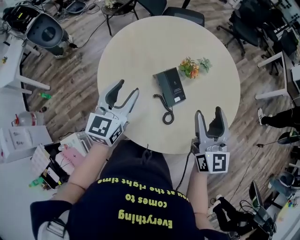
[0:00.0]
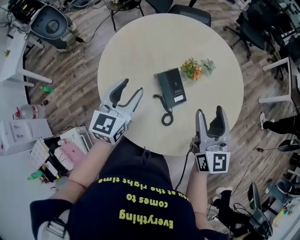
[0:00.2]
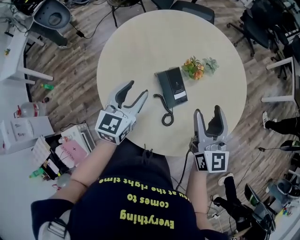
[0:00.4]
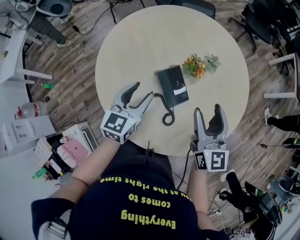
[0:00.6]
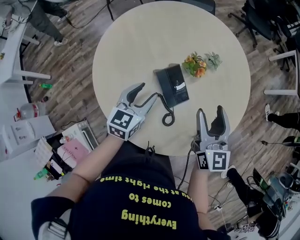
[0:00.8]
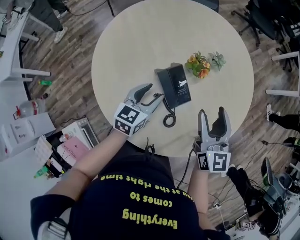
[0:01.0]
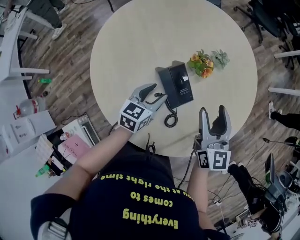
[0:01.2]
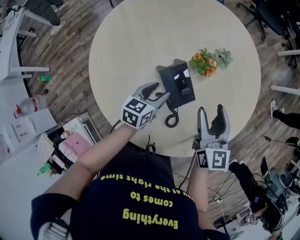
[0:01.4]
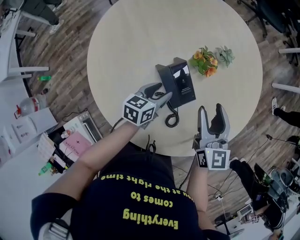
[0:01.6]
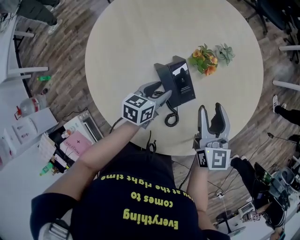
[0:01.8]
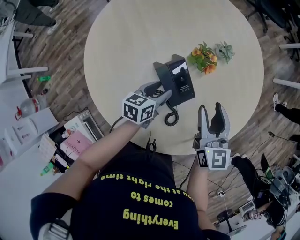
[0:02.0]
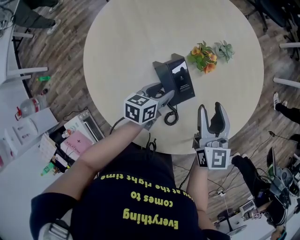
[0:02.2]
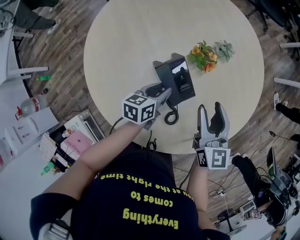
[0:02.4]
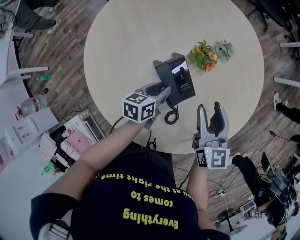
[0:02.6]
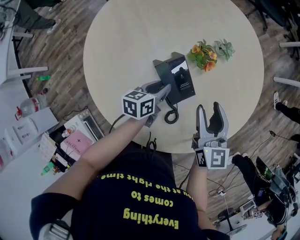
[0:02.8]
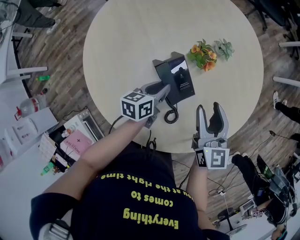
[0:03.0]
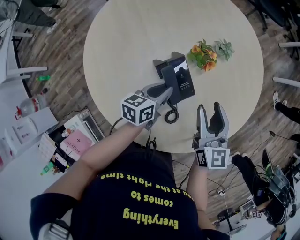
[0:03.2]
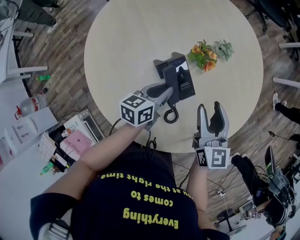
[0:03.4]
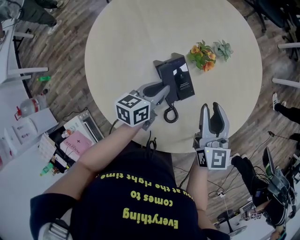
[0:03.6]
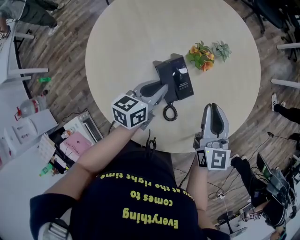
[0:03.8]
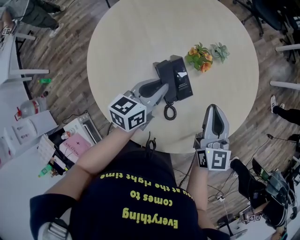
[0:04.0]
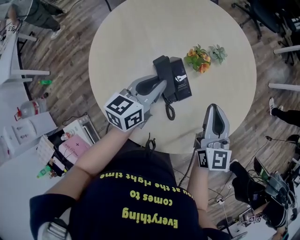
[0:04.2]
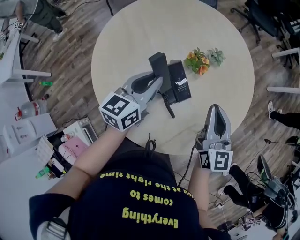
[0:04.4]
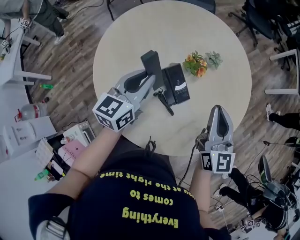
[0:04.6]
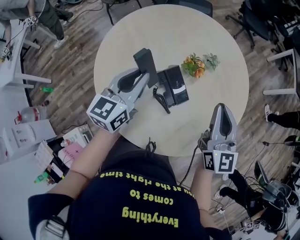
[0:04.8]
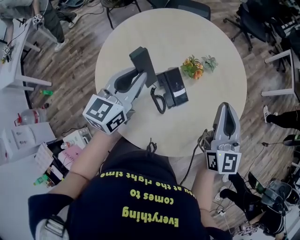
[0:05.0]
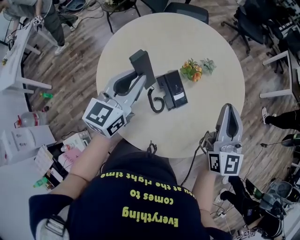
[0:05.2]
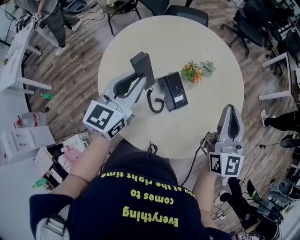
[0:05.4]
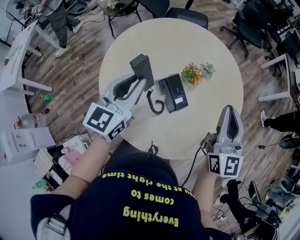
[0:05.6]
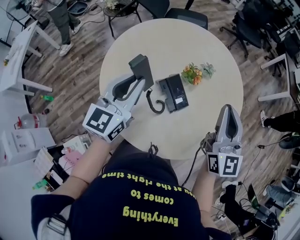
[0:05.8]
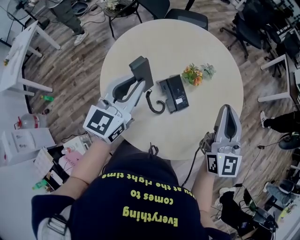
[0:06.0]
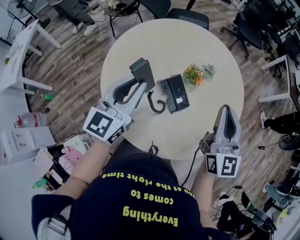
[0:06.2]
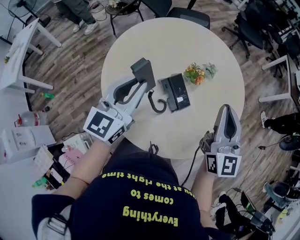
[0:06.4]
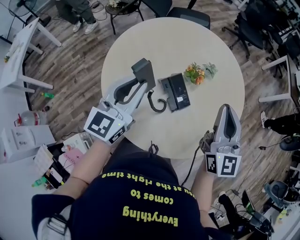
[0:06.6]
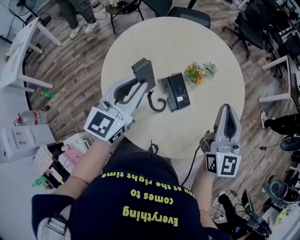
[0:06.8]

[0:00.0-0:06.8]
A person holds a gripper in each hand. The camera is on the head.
0:00.0 to 0:01.4: The right gripper goes about 15 cm downward and forward. The left gripper goes some 25 cm downward, to the right and forward, and rotates about 30 degrees.
0:01.4 to 0:02.8: The left gripper closes up.
0:02.8 to 0:04.0: The left gripper heads upward, covering approximately 10 cm. The right gripper closes.
0:04.0 to 0:05.4: The left gripper goes roughly 20 cm upward and to the left, and turns by about 30 degrees; the right gripper shifts about 15 cm upward.
0:05.4 to 0:06.8: There are only small adjustments of the grippers.

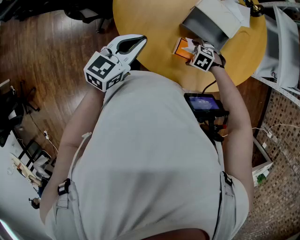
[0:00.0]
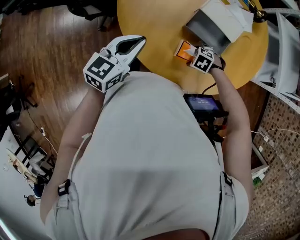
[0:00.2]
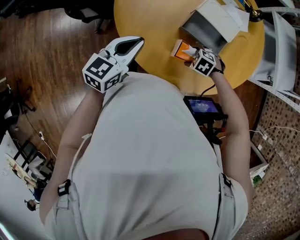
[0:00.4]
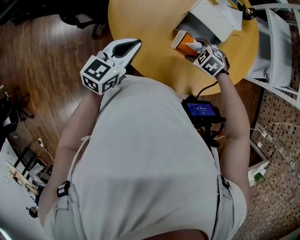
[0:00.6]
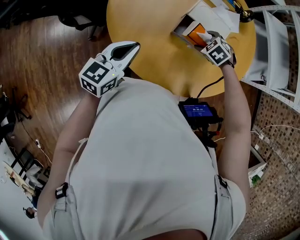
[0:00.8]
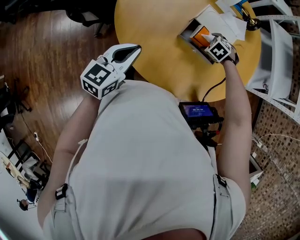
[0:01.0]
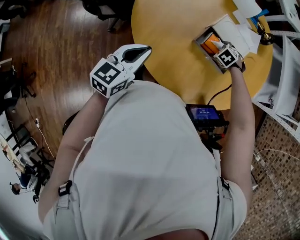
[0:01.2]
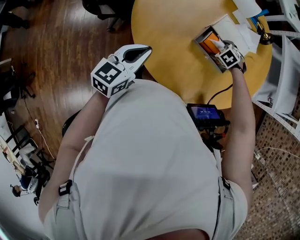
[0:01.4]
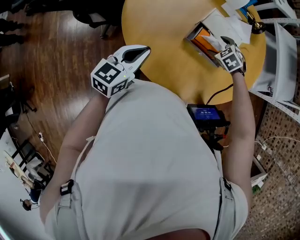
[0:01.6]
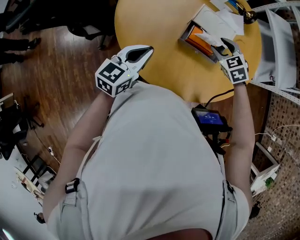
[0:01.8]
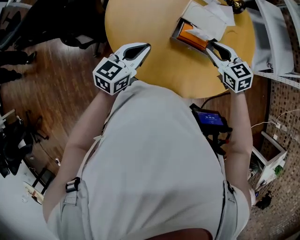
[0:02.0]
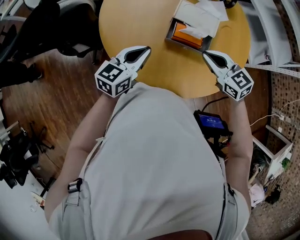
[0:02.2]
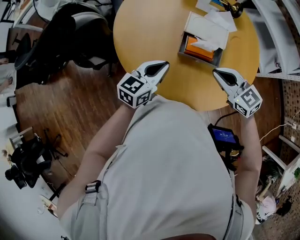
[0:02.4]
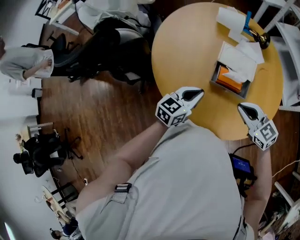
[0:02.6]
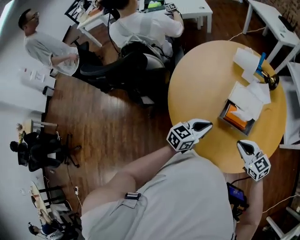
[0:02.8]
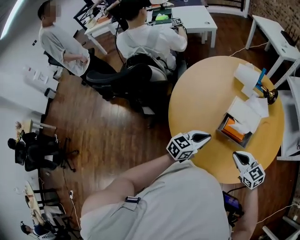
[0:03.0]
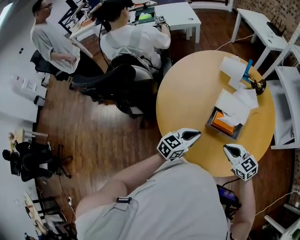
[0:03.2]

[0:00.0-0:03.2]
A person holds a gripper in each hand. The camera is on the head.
0:00.0 to 0:01.6: The right gripper swings up and down, roughly 10 cm each way, with 2 reversals, and changes its angle by about 30 degrees.
0:01.6 to 0:03.2: The right gripper goes some 20 cm upward and backward, angles its fingers upward, by approximately 40 degrees, and closes up. The left gripper moves to the right, about 10 cm.

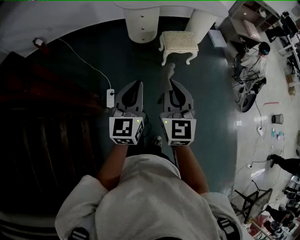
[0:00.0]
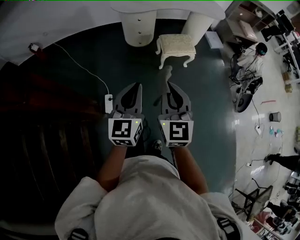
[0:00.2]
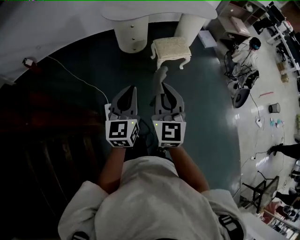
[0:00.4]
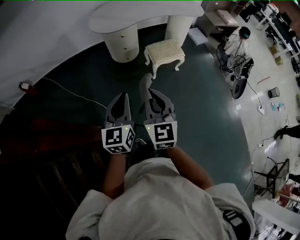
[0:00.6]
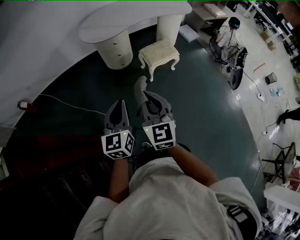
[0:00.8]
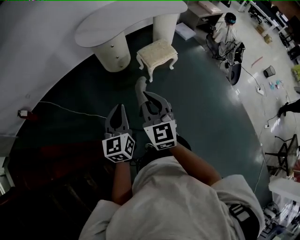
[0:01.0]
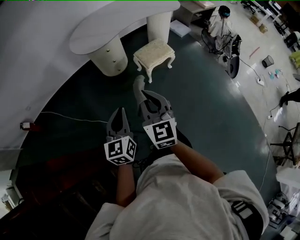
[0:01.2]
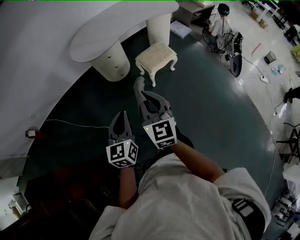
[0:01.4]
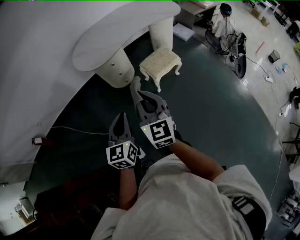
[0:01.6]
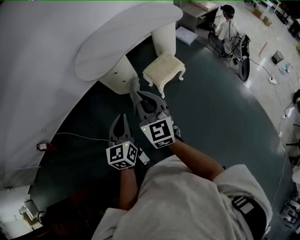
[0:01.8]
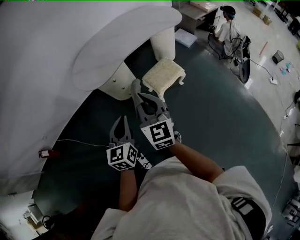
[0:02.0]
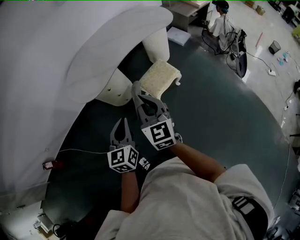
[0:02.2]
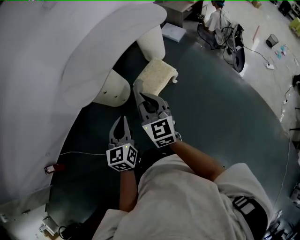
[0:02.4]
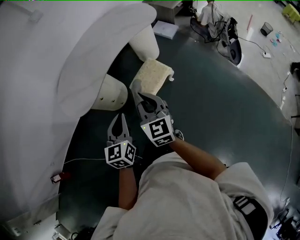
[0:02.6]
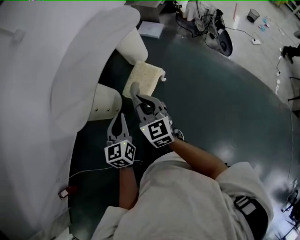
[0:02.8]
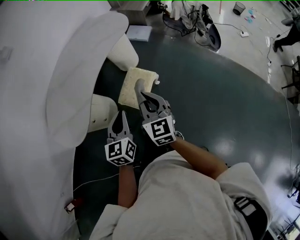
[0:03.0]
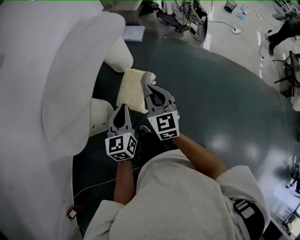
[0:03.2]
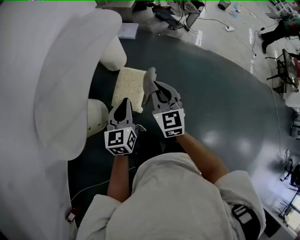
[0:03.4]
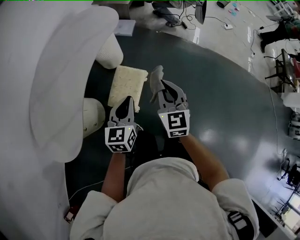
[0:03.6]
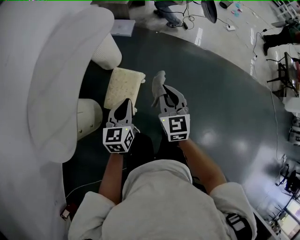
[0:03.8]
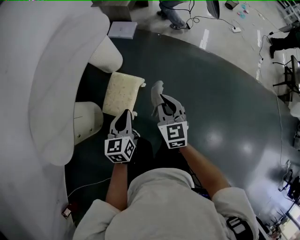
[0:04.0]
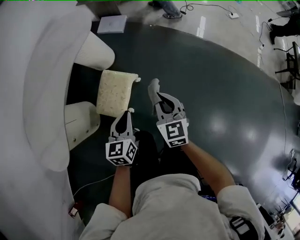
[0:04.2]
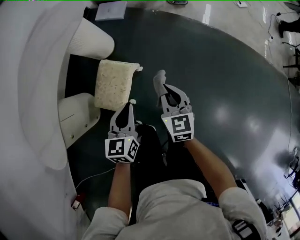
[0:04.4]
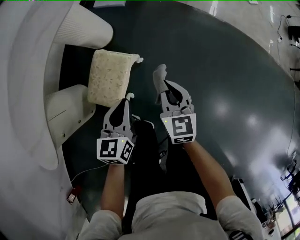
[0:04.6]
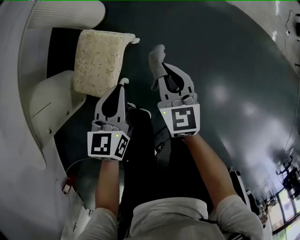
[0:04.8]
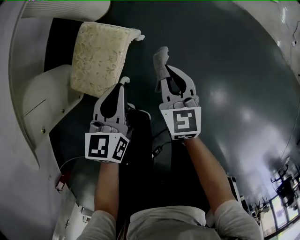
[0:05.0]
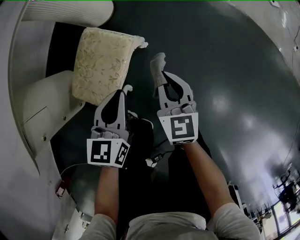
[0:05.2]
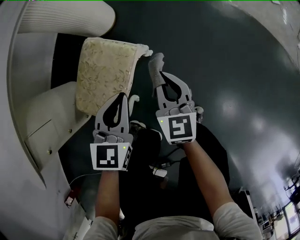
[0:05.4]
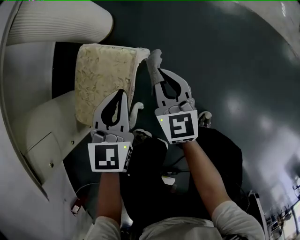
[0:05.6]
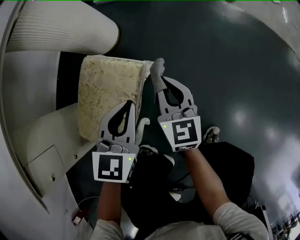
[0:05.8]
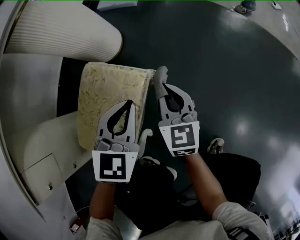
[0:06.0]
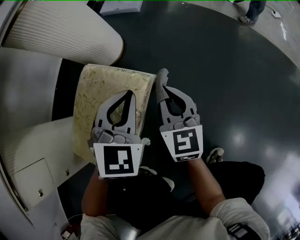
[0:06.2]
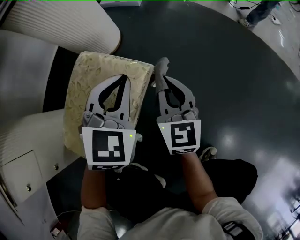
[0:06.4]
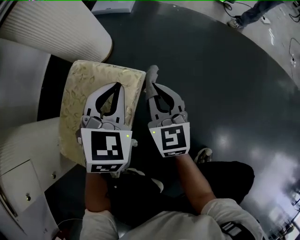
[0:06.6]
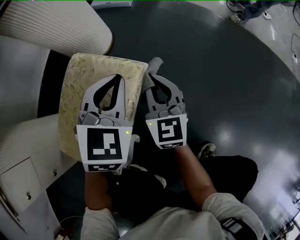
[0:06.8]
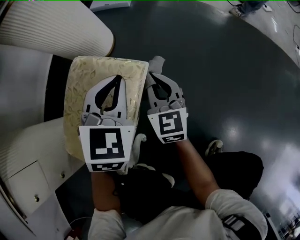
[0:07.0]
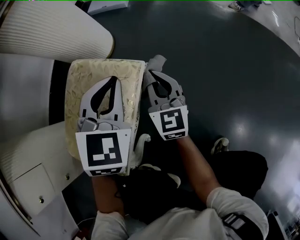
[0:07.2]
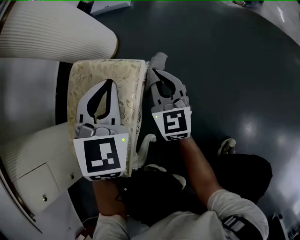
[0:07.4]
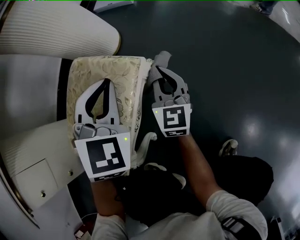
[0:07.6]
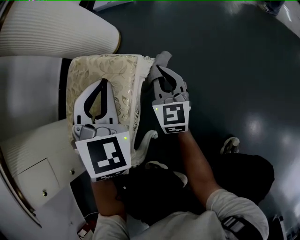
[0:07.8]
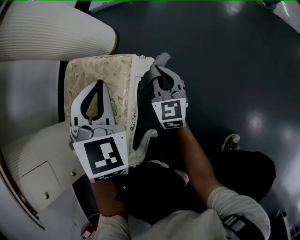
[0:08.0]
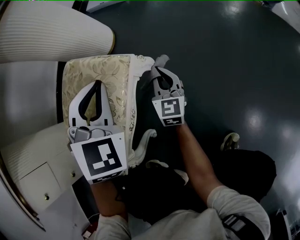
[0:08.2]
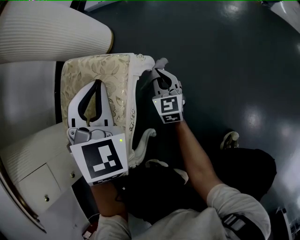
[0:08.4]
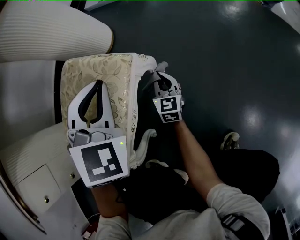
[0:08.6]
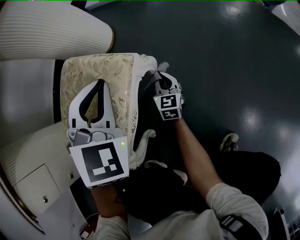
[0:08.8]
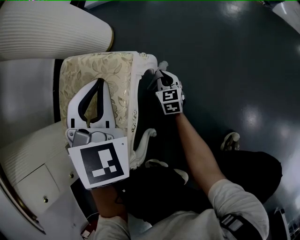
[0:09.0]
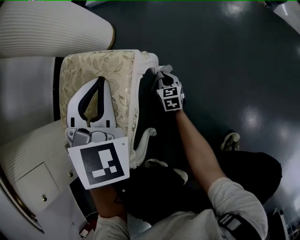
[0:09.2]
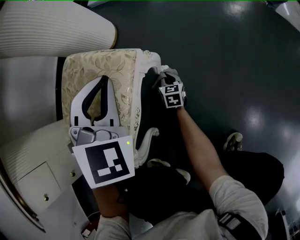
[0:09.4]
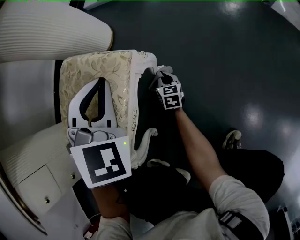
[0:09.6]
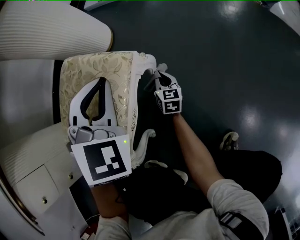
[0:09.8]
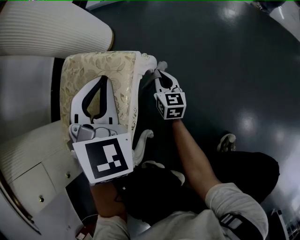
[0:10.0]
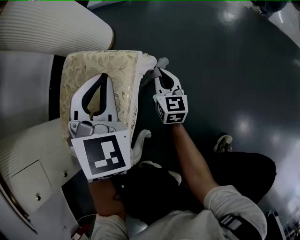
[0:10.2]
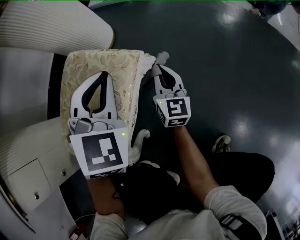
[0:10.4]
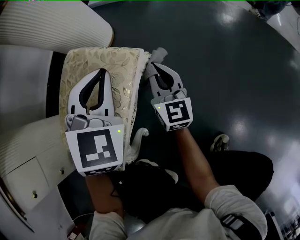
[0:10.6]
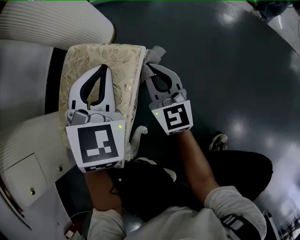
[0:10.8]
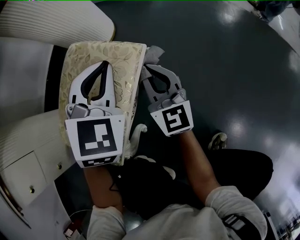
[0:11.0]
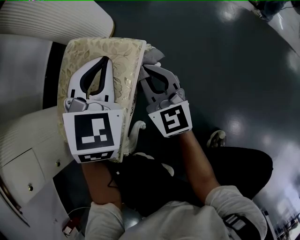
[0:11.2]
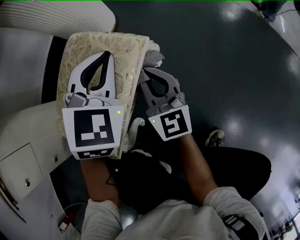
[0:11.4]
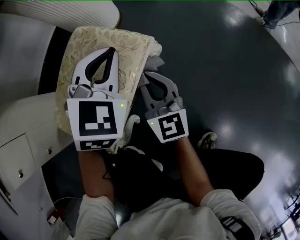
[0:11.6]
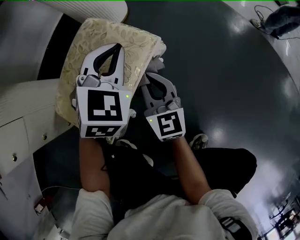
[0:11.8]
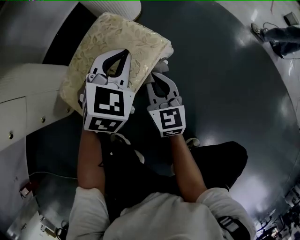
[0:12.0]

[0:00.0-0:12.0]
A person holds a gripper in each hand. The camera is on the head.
0:00.0 to 0:01.6: Both grippers move forward and to the left, some 25 cm.
0:01.6 to 0:03.0: The left gripper moves some 40 cm, and swivels approximately 30 degrees, while the right gripper ends up approximately 40 cm from where it was, and turns by approximately 30 degrees.
0:03.0 to 0:04.4: The grippers both shift downward, to the right and forward by some 30 cm.
0:04.4 to 0:06.0: Both grippers move downward, roughly 40 cm. The left gripper swivels approximately 30 degrees.
0:06.0 to 0:07.6: The left gripper shifts by approximately 5 cm, and swivels approximately 20 degrees; the right gripper shifts roughly 10 cm downward.
0:07.6 to 0:09.0: The right gripper moves downward, roughly 20 cm.
0:09.0 to 0:10.4: The right gripper travels upward by some 15 cm.
0:10.4 to 0:12.0: The right gripper is displaced upward, to the left and backward by roughly 15 cm, and swivels some 30 degrees.

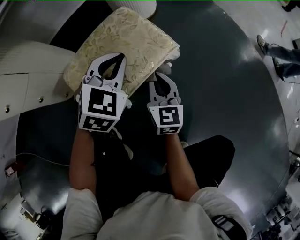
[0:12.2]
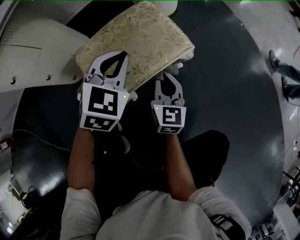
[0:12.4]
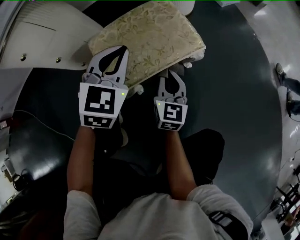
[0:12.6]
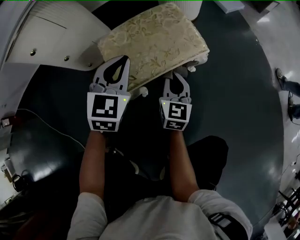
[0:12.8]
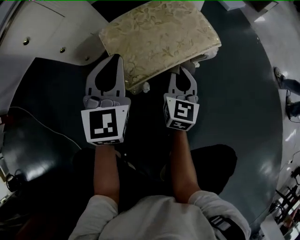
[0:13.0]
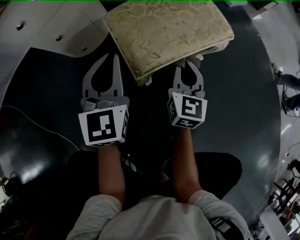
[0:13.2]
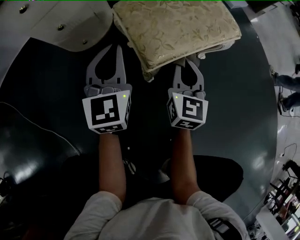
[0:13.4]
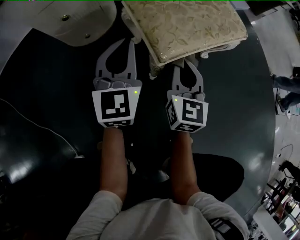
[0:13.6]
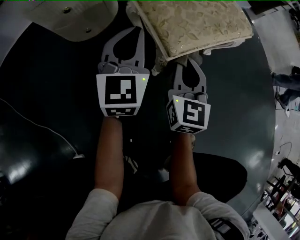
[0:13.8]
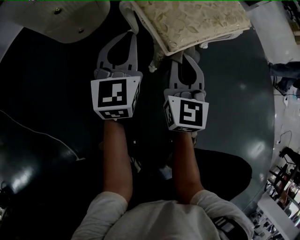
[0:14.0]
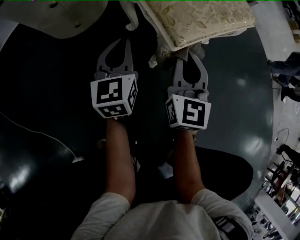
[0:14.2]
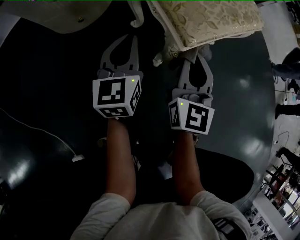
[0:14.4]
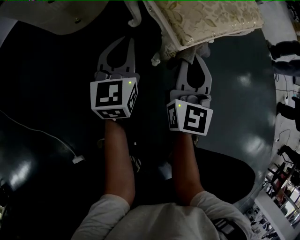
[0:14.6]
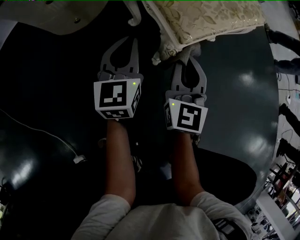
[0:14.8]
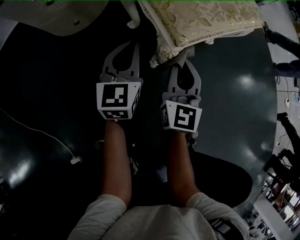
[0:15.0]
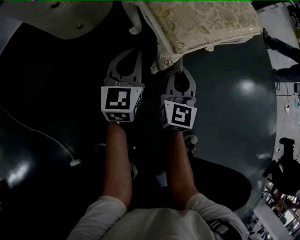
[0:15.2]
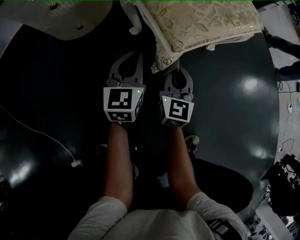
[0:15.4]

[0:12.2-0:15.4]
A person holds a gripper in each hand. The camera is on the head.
0:12.2 to 0:13.8: The grippers both shift to the left and backward by some 20 cm. The left gripper changes its angle by roughly 40 degrees.
0:13.8 to 0:15.4: Both grippers move downward, some 15 cm.
